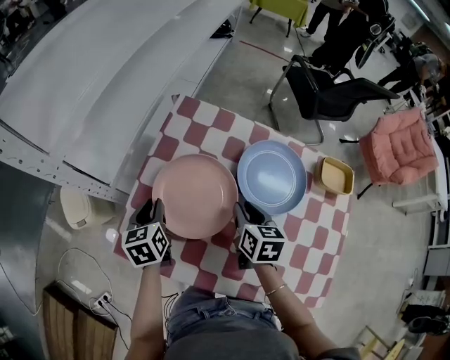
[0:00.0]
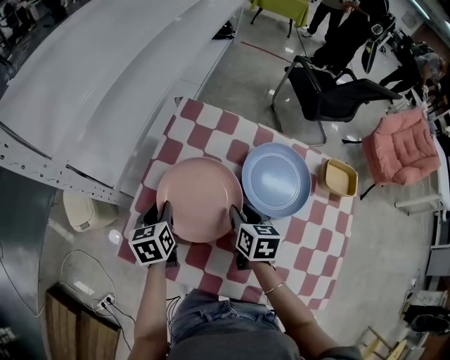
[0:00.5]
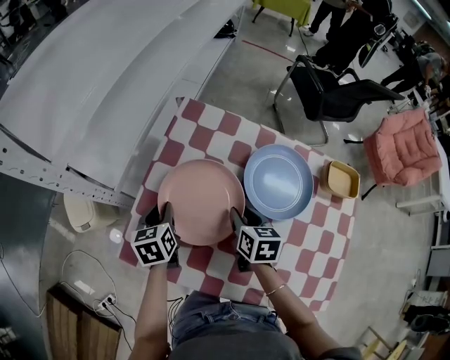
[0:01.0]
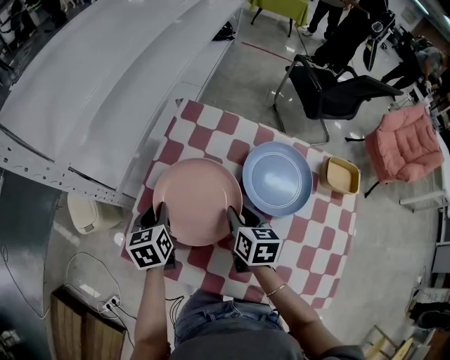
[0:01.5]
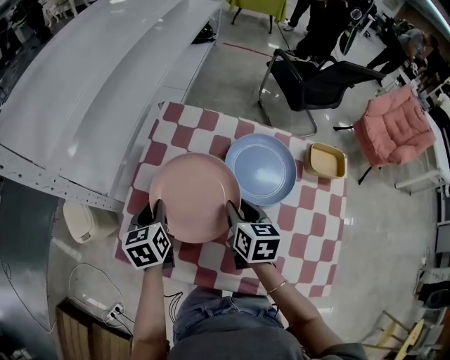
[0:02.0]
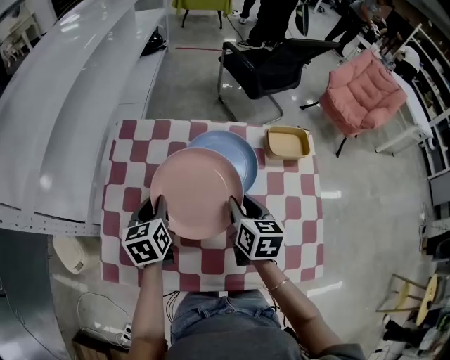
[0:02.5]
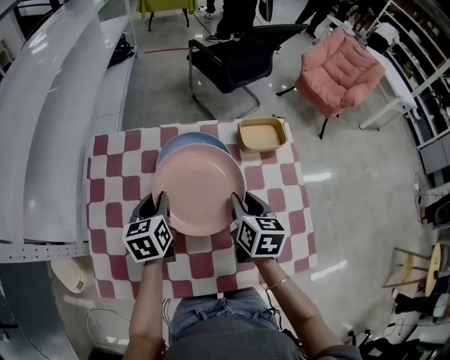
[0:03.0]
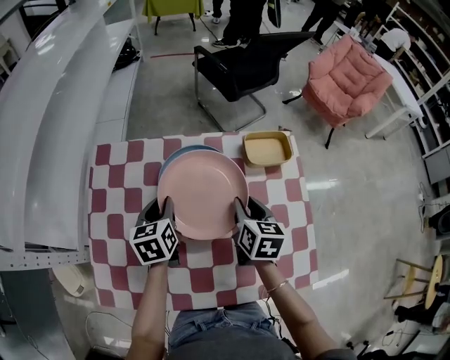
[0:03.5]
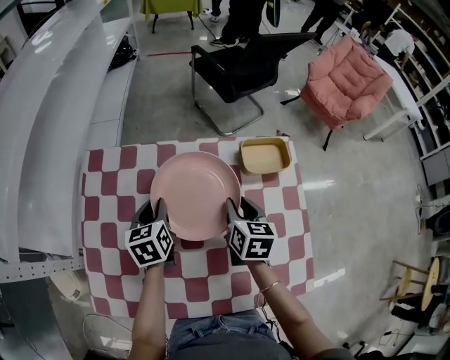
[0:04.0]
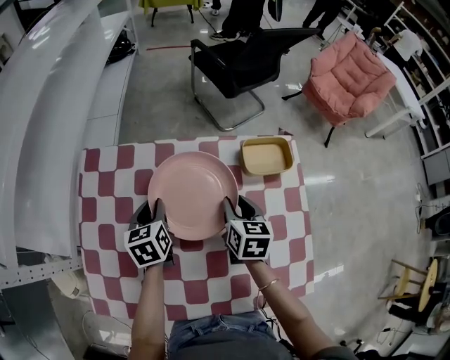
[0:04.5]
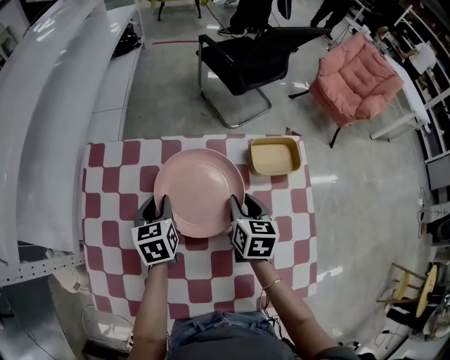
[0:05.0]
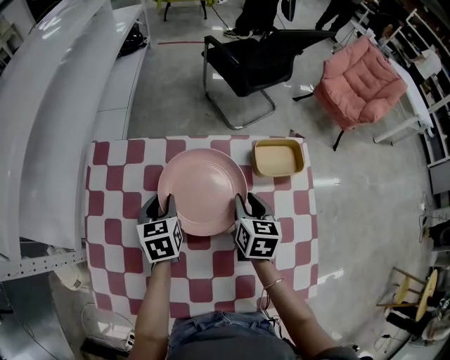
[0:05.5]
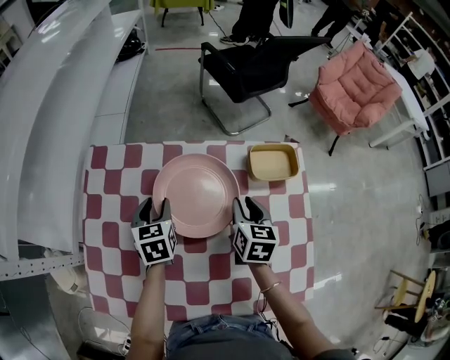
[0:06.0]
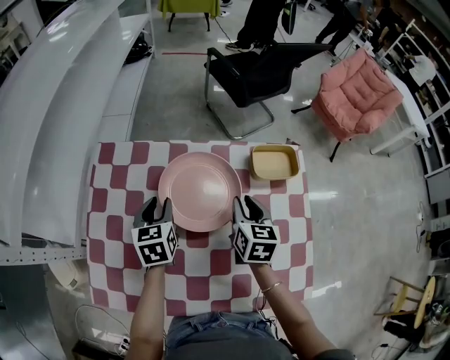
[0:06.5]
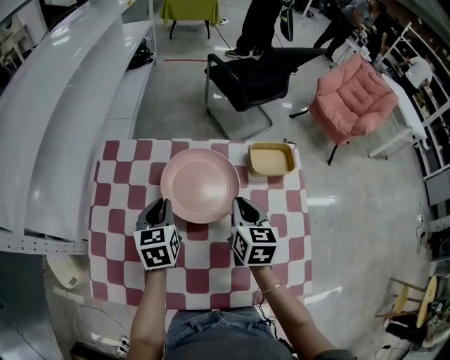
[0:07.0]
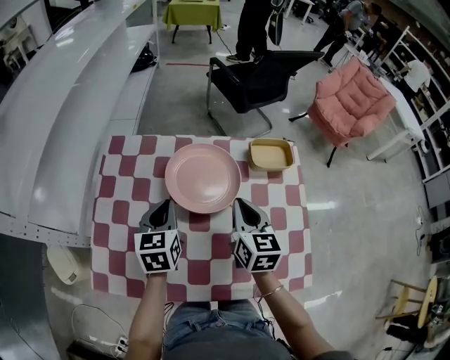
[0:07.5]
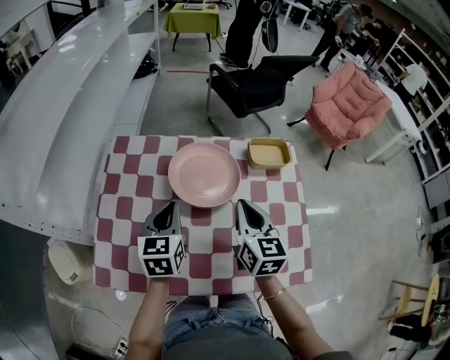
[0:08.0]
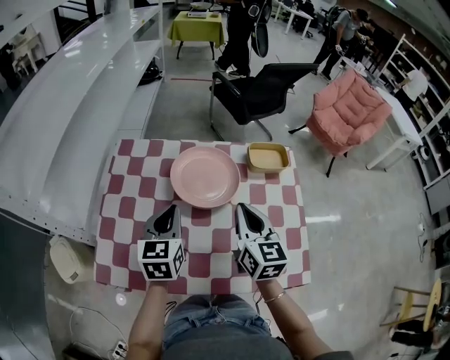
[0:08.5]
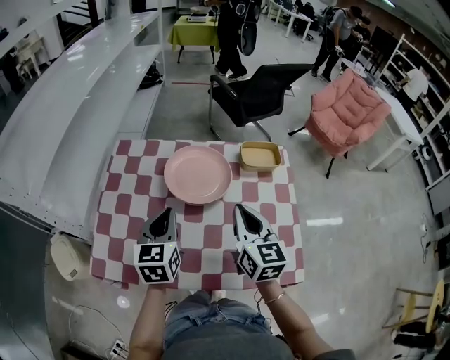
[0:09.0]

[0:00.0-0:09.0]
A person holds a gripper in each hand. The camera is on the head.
0:00.0 to 0:02.0: The grippers move only a little.
0:02.0 to 0:04.5: The right gripper moves approximately 20 cm, and turns by some 20 degrees; the left gripper changes place by roughly 25 cm.
0:04.5 to 0:07.0: The left gripper travels backward and upward by about 5 cm, and opens and closes again. Meanwhile the right gripper shifts some 5 cm upward, and closes its fingers.
0:07.0 to 0:09.0: Both grippers travel together backward and upward, some 15 cm.

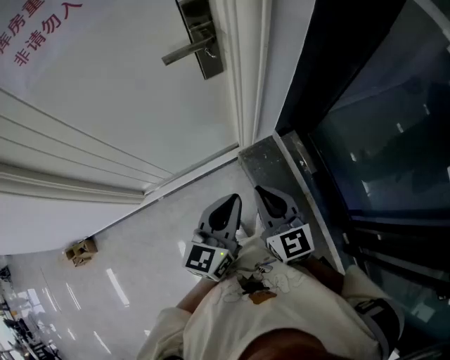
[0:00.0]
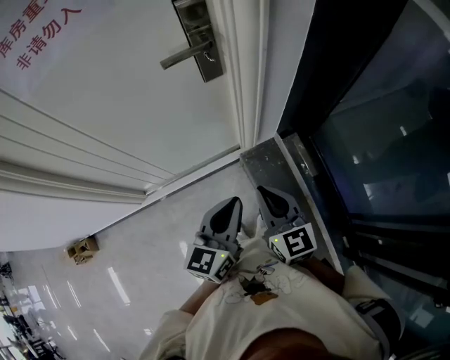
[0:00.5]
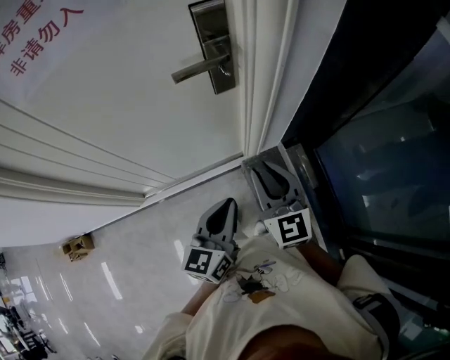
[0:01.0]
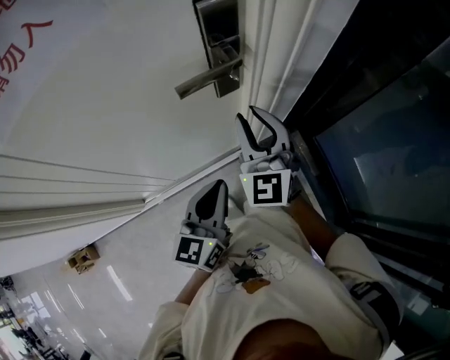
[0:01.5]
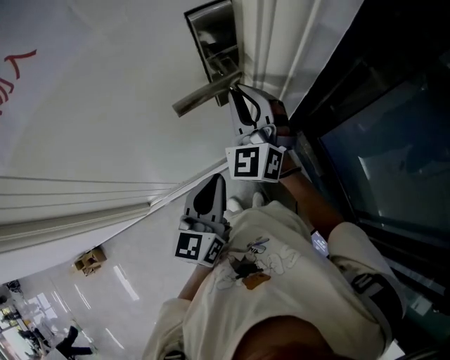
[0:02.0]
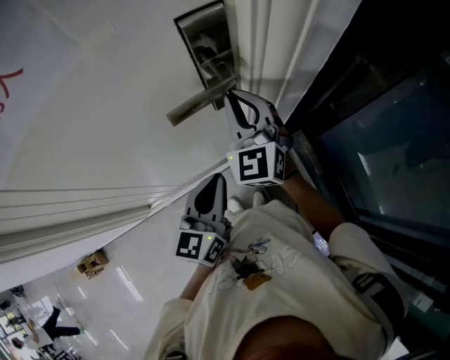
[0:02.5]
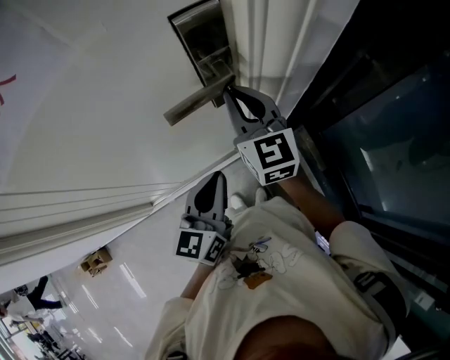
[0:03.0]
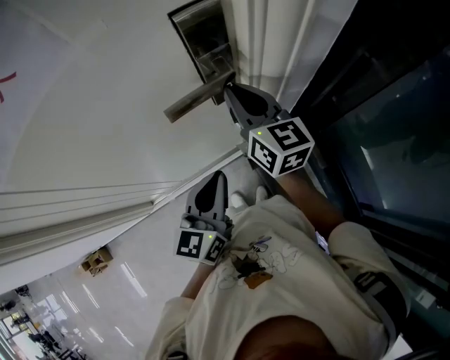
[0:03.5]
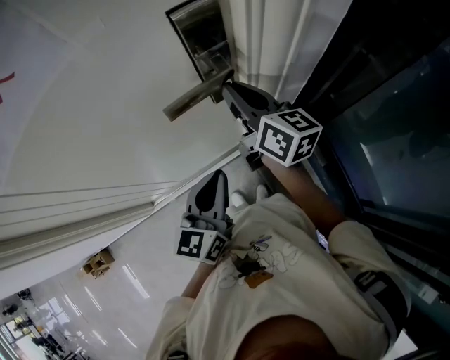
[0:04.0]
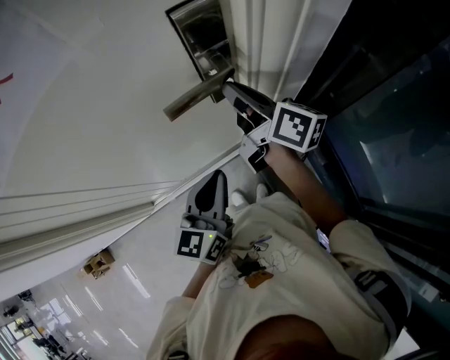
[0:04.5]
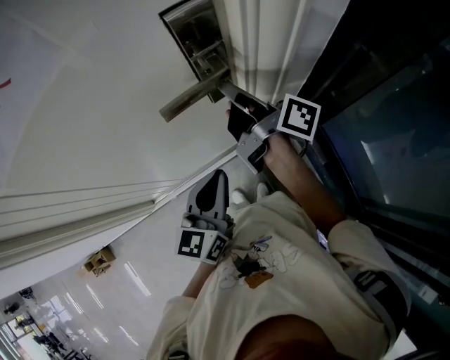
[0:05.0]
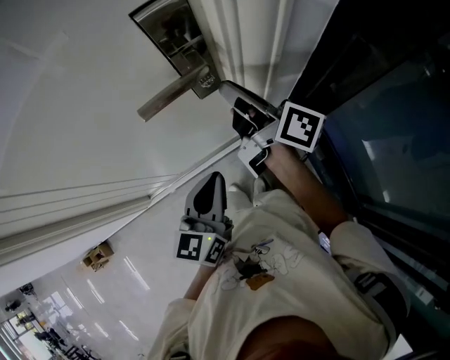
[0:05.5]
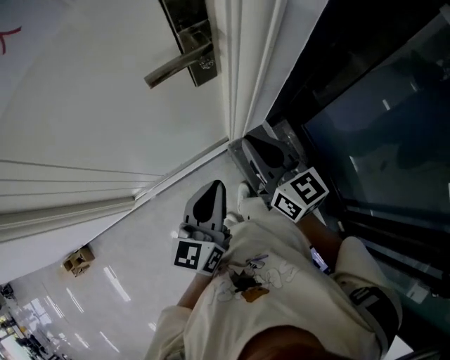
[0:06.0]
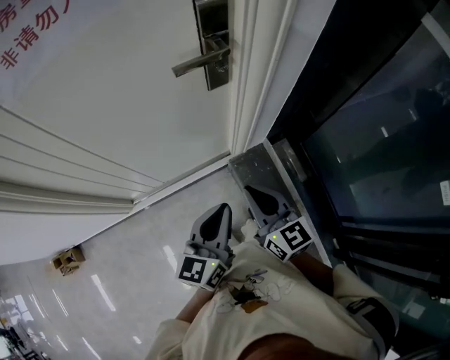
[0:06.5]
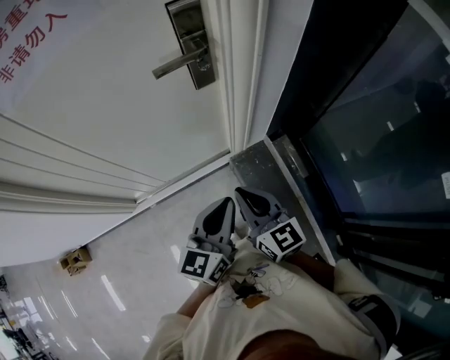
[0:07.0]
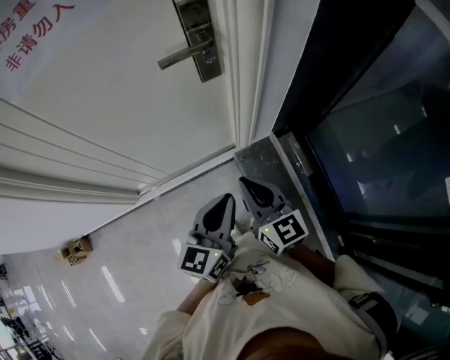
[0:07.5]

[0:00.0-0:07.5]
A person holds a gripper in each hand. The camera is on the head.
0:00.0 to 0:02.0: The left gripper goes roughly 20 cm forward and to the left. The right gripper is displaced forward by some 35 cm, and rolls counterclockwise, seen from behind, by roughly 40 degrees.
0:02.0 to 0:04.0: The right gripper twists some 70 degrees clockwise, seen from behind.
0:04.0 to 0:05.5: The right gripper swivels approximately 30 degrees.
0:05.5 to 0:07.5: The left gripper travels backward by roughly 15 cm; the right gripper is displaced backward by some 30 cm, and twists approximately 50 degrees counterclockwise, seen from behind.

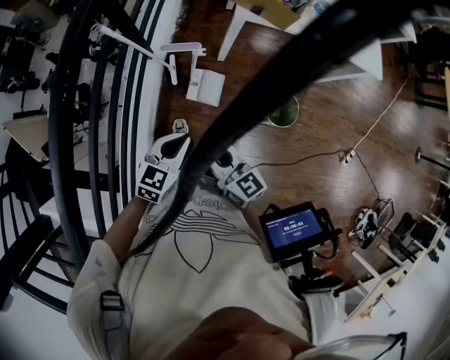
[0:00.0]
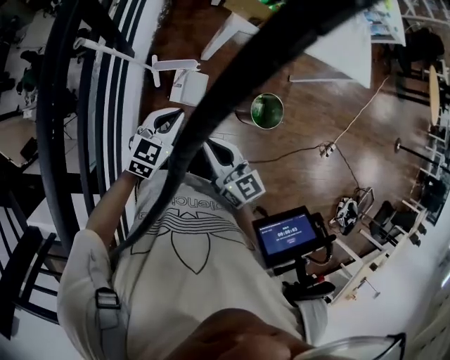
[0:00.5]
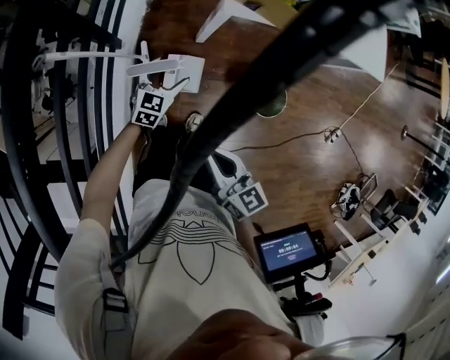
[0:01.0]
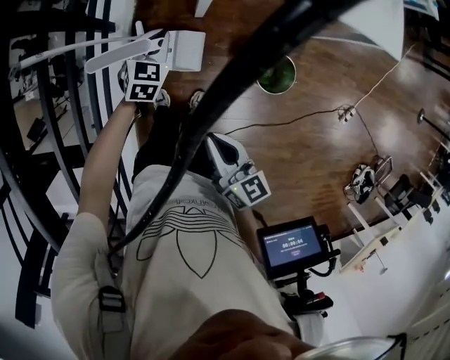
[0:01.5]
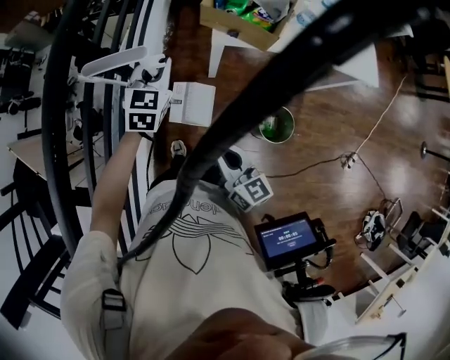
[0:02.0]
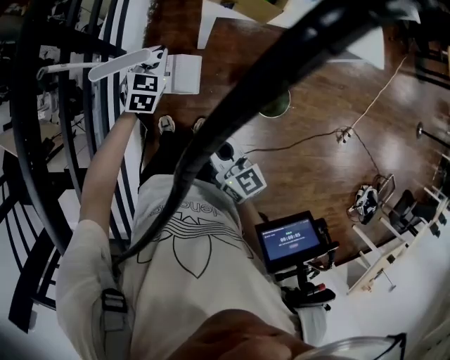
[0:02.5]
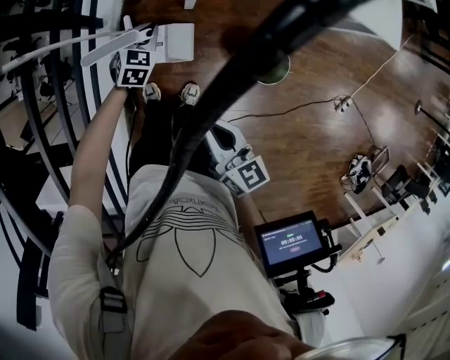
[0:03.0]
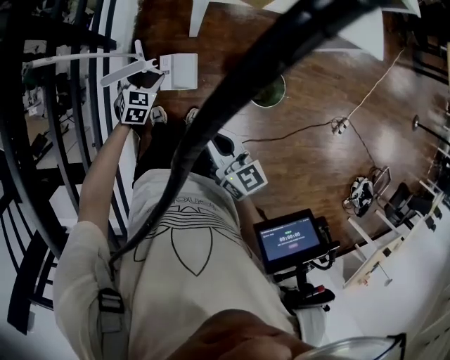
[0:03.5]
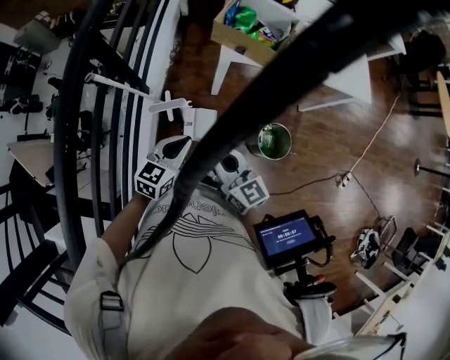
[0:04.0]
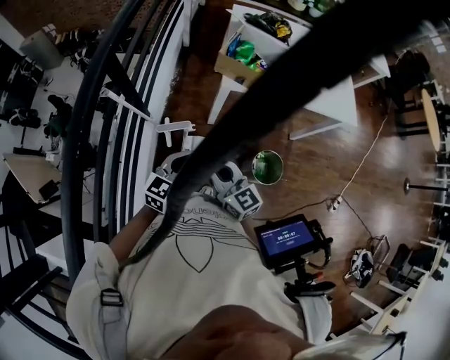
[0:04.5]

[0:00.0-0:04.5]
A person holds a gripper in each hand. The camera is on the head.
0:00.0 to 0:02.0: The left gripper shifts roughly 25 cm forward, changes its angle by roughly 20 degrees, and opens, then closes once more. The right gripper changes place by about 5 cm.
0:02.0 to 0:04.5: The left gripper is displaced backward by some 20 cm, reaches approximately 25 cm downward, then returns, swivels approximately 30 degrees, and opens and closes again, while the right gripper moves some 5 cm.

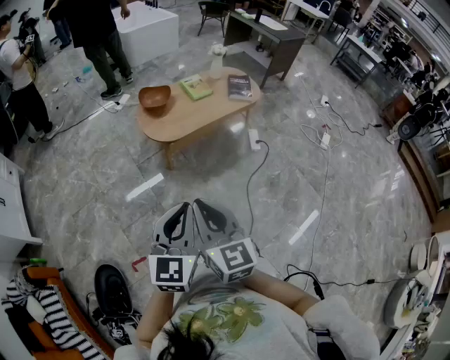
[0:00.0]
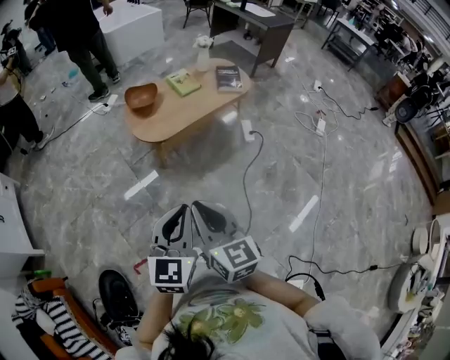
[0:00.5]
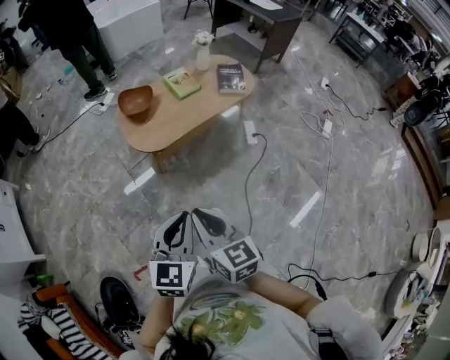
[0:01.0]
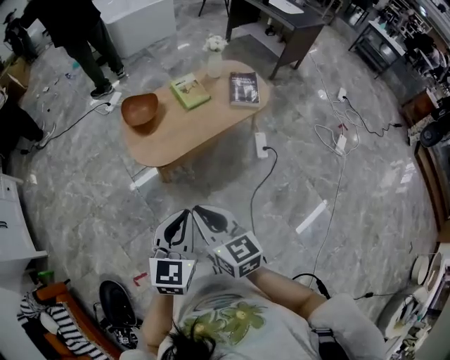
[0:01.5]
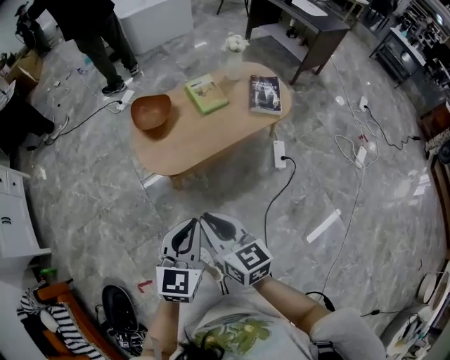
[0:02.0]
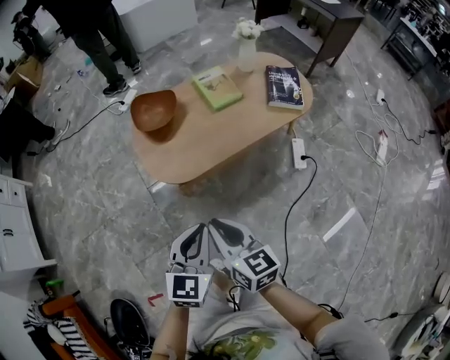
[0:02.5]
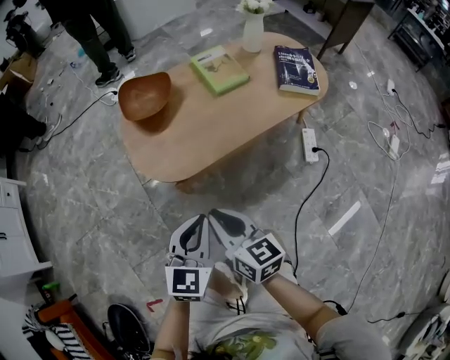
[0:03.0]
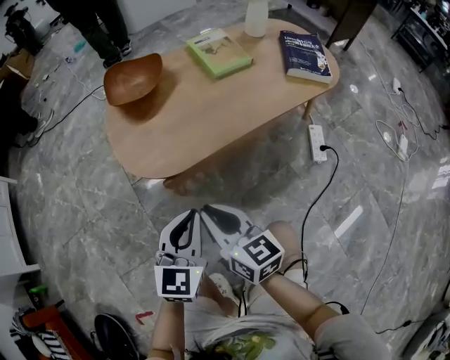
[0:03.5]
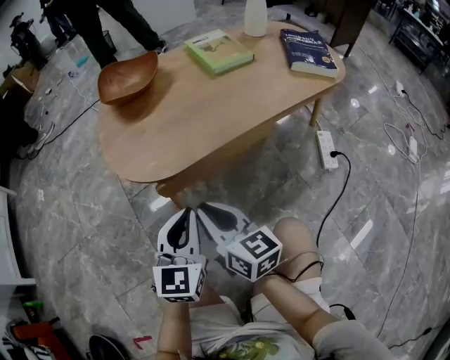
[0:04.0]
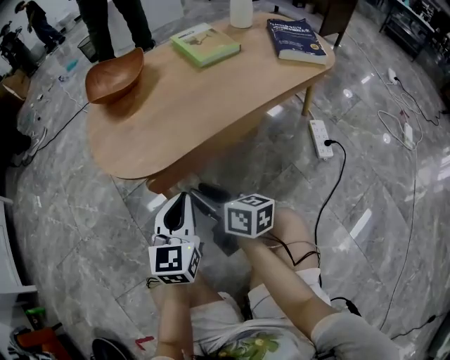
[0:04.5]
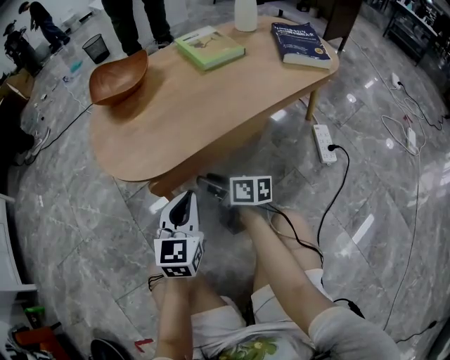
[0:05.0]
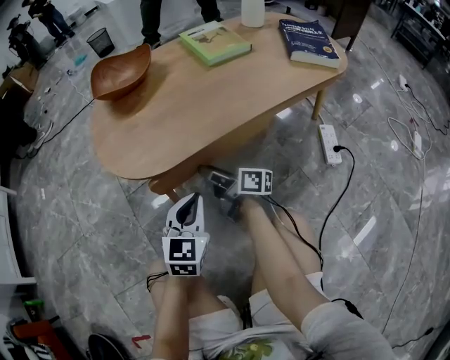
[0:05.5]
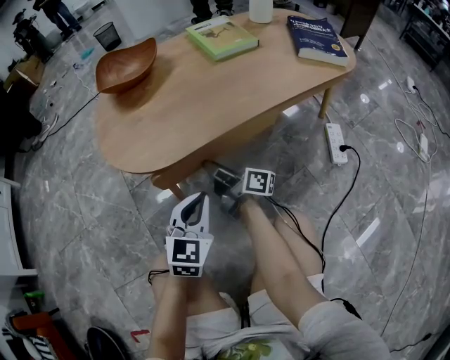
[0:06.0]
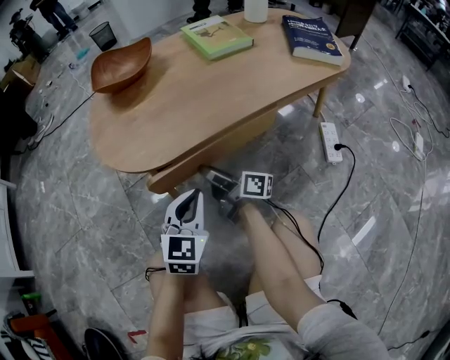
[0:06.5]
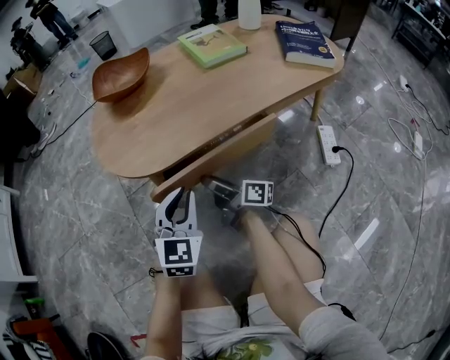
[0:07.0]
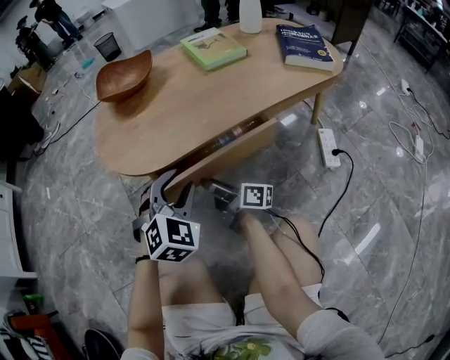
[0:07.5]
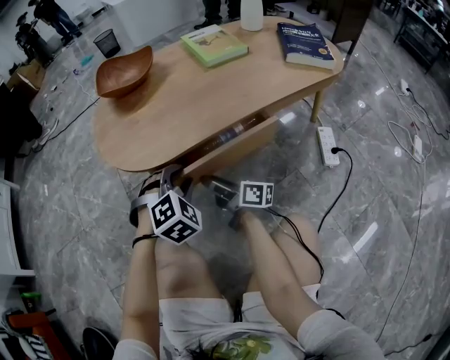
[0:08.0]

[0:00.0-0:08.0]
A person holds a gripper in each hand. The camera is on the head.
0:00.0 to 0:02.0: The two grippers go about 35 cm forward and downward. The right gripper swivels approximately 20 degrees.
0:02.0 to 0:04.0: The two grippers go about 40 cm downward.
0:04.0 to 0:06.0: The left gripper travels downward by roughly 10 cm. The right gripper travels downward and forward by some 20 cm, rotates around the line of its fingers by some 40 degrees, clockwise from behind, and opens up.
0:06.0 to 0:08.0: The left gripper rolls clockwise, seen from behind, by some 40 degrees, and opens up. The right gripper shifts some 5 cm backward.
